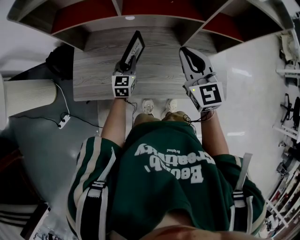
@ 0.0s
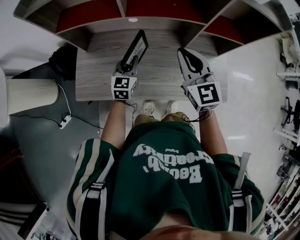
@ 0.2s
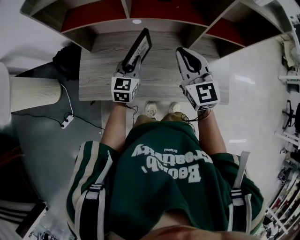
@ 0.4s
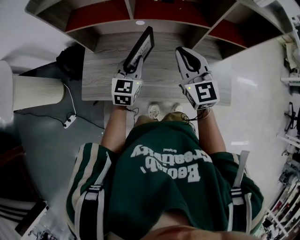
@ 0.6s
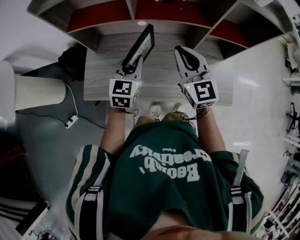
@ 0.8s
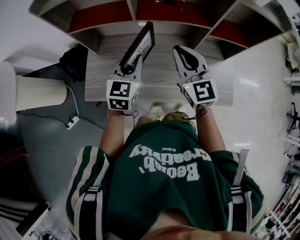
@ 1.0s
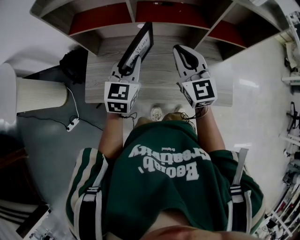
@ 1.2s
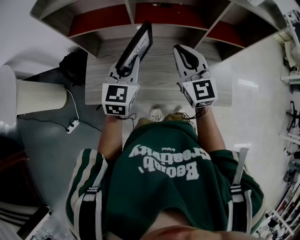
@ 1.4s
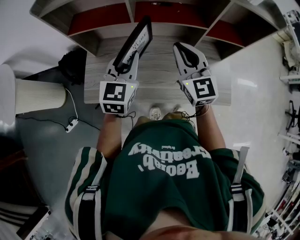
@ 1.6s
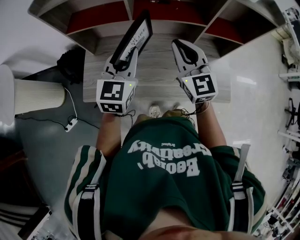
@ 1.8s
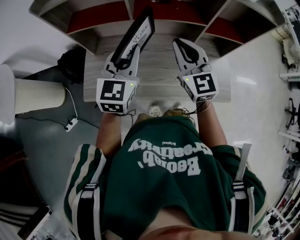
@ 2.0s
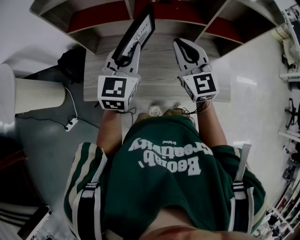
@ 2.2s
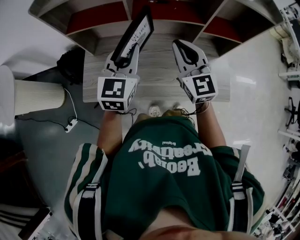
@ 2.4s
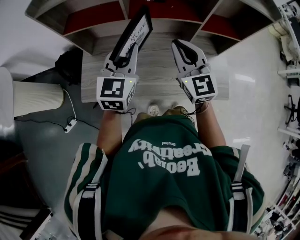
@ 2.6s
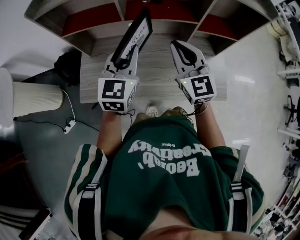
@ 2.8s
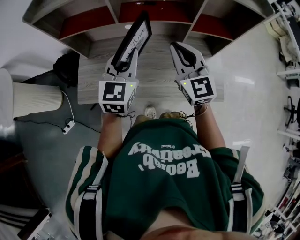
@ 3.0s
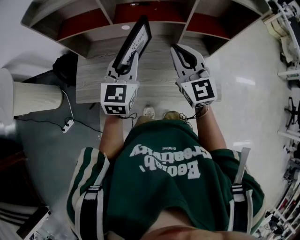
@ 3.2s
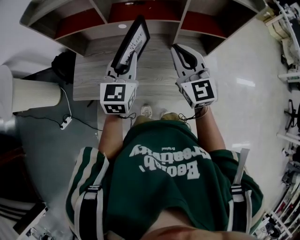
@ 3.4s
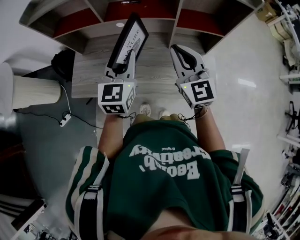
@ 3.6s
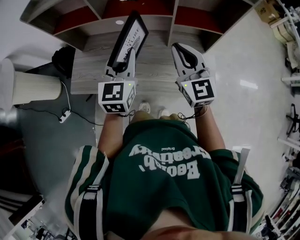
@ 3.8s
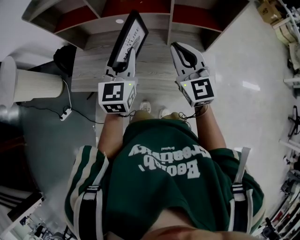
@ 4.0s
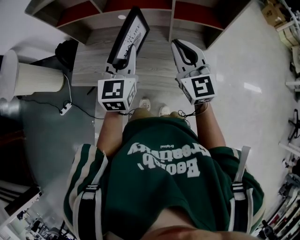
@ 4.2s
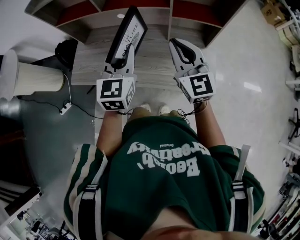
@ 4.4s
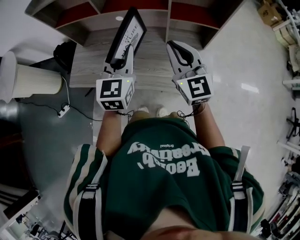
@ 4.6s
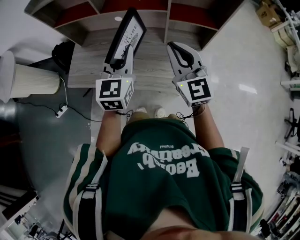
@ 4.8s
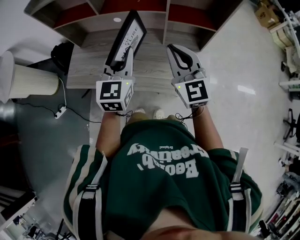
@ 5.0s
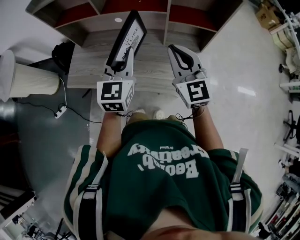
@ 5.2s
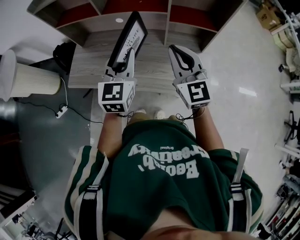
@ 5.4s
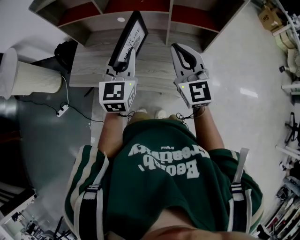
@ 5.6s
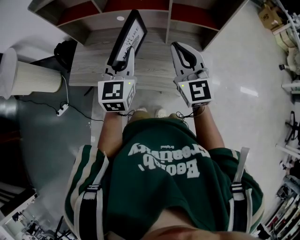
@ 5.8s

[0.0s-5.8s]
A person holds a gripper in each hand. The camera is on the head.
0.0s to 1.4s: The left gripper goes roughly 20 cm upward. Meanwhile the right gripper changes place by about 5 cm.
1.4s to 2.8s: The left gripper goes approximately 5 cm upward.
2.8s to 4.4s: Both grippers move to the right and backward, roughly 15 cm.
4.4s to 5.8s: The grippers stay close to where they were, moving slightly.

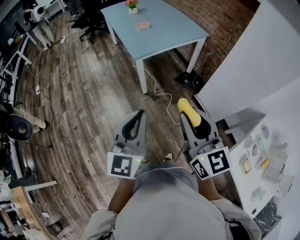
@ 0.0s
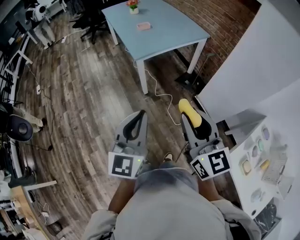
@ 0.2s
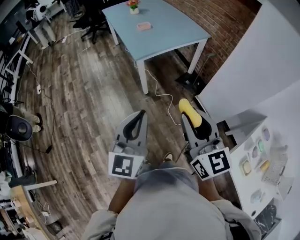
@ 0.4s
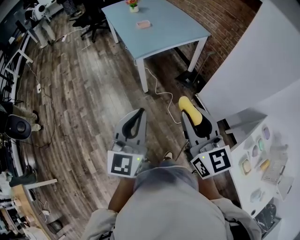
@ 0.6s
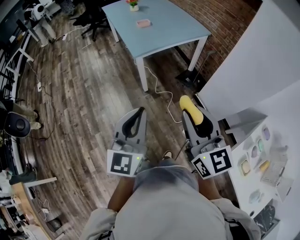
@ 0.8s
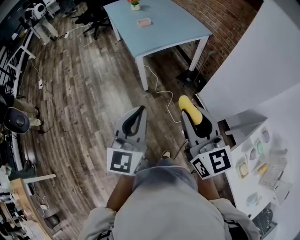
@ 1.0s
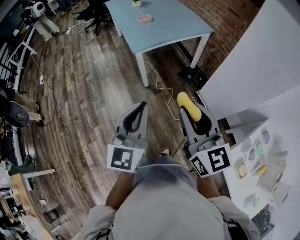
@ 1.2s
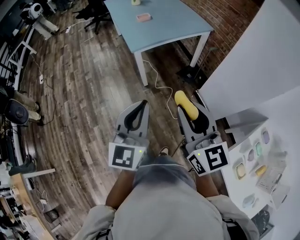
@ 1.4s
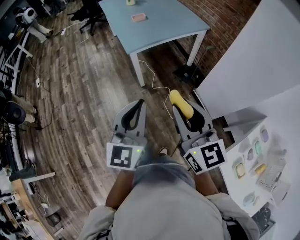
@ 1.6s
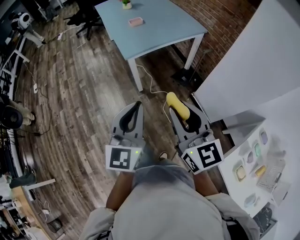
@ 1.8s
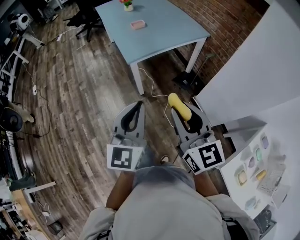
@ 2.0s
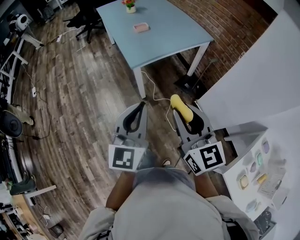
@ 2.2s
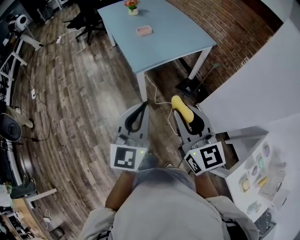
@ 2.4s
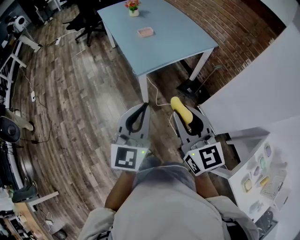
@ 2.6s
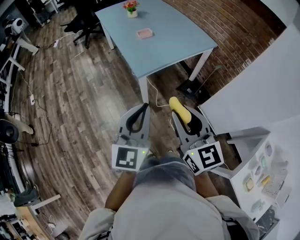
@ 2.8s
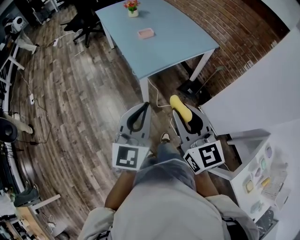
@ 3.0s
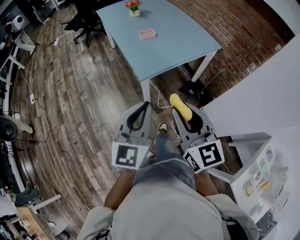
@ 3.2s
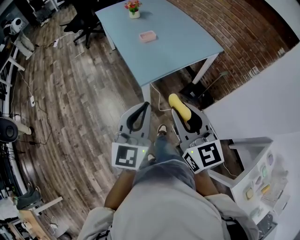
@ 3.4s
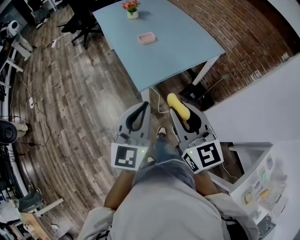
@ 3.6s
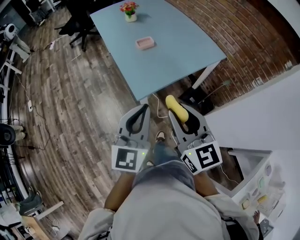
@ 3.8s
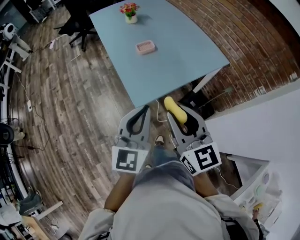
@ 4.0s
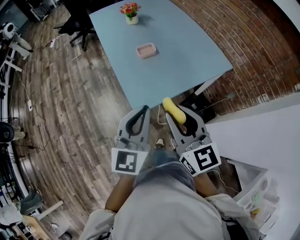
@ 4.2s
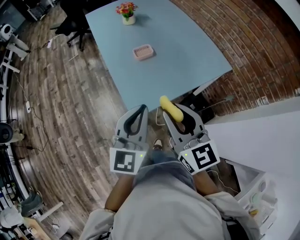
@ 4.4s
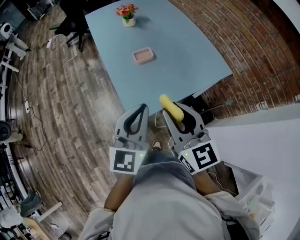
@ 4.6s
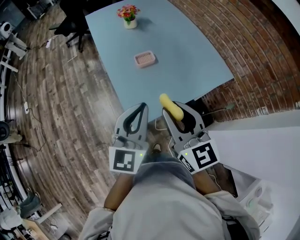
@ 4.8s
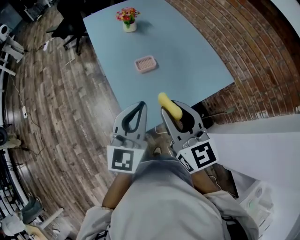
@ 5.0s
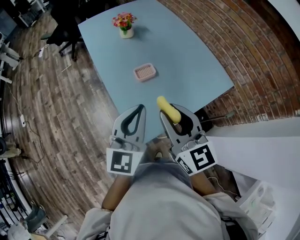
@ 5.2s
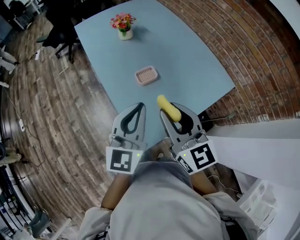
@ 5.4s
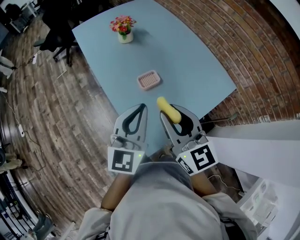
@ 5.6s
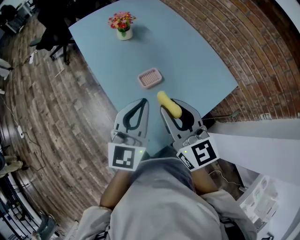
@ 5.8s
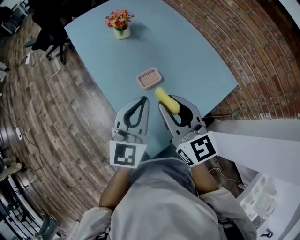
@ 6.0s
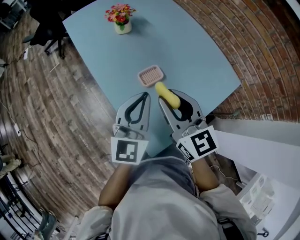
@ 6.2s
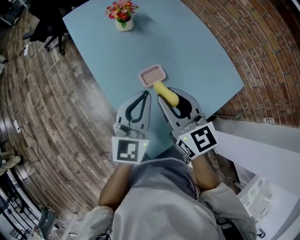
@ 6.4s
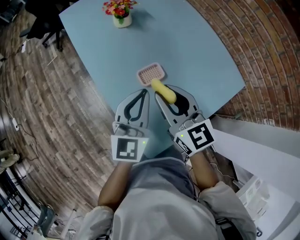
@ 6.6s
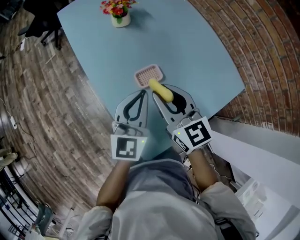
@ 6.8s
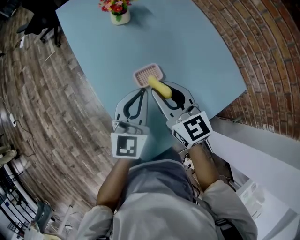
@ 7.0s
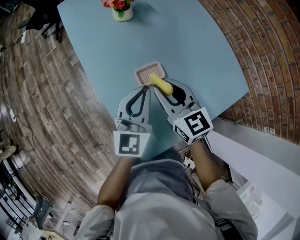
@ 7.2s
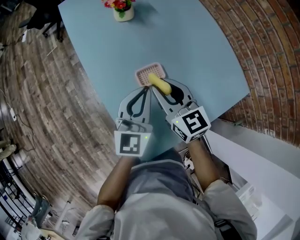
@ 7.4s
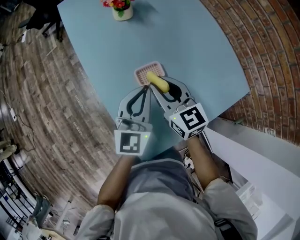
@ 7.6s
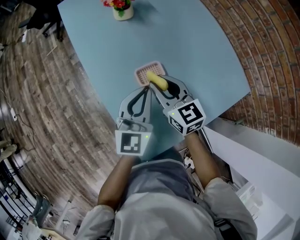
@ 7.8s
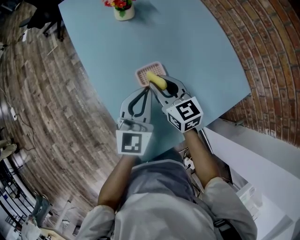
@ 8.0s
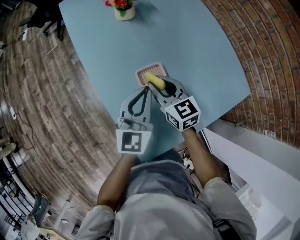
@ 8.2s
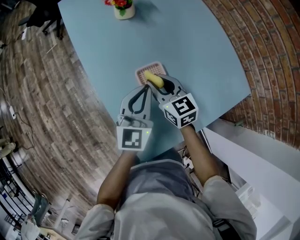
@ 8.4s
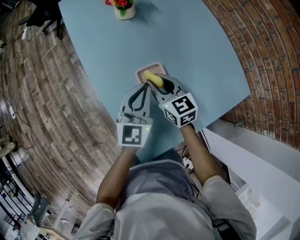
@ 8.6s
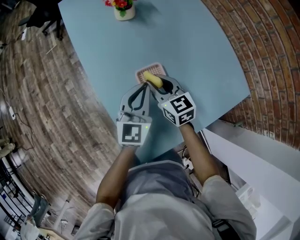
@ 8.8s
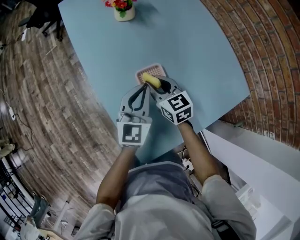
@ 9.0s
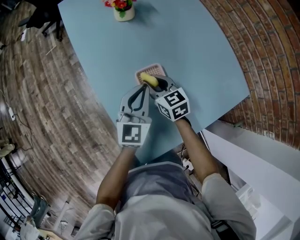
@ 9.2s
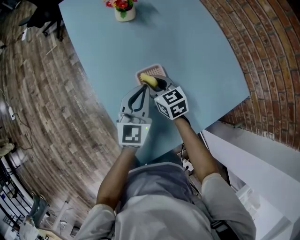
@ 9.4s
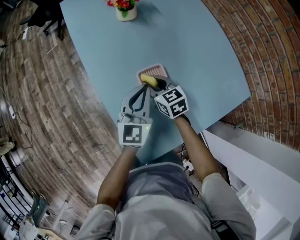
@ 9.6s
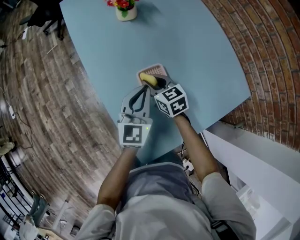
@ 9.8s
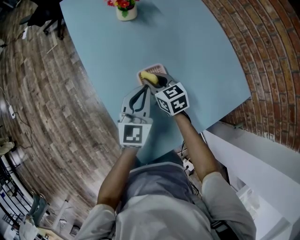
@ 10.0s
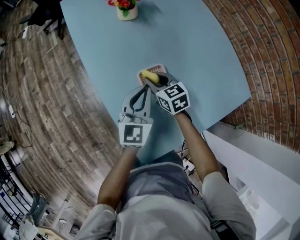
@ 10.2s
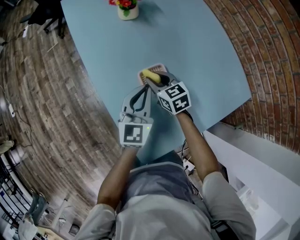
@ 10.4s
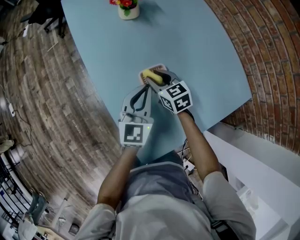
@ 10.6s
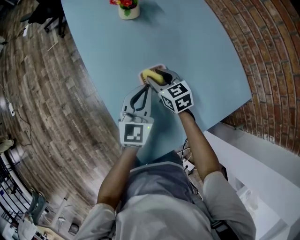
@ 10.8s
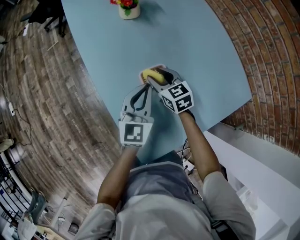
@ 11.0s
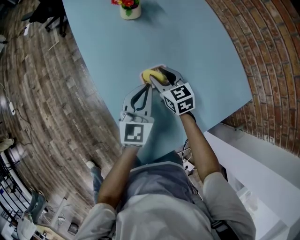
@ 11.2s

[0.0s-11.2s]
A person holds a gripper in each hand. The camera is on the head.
0.0s to 1.6s: The right gripper moves roughly 5 cm; the left gripper moves to the right, some 10 cm.
1.6s to 3.2s: Both grippers travel together forward and to the left, roughly 25 cm.
3.2s to 4.8s: The grippers both shift forward by some 35 cm.
4.8s to 6.4s: Both grippers travel together forward, some 25 cm.
6.4s to 8.0s: The right gripper heads downward and forward, covering roughly 15 cm. Meanwhile the left gripper goes some 10 cm downward.
8.0s to 9.6s: The right gripper is displaced downward by approximately 10 cm.
9.6s to 11.2s: The grippers stay close to where they were, moving slightly.

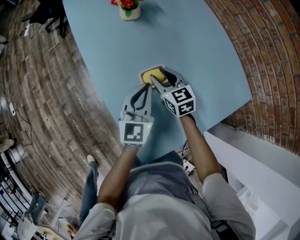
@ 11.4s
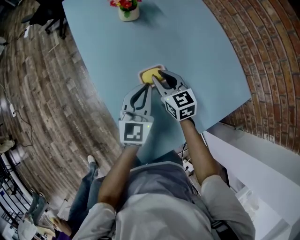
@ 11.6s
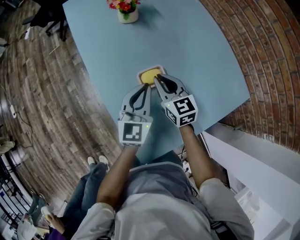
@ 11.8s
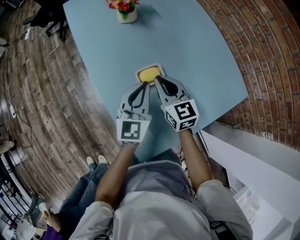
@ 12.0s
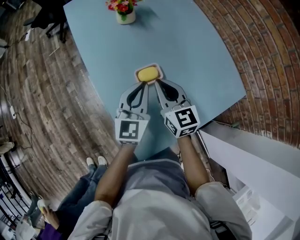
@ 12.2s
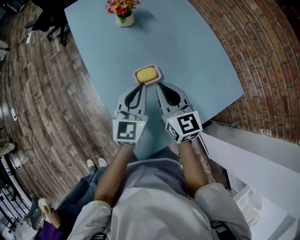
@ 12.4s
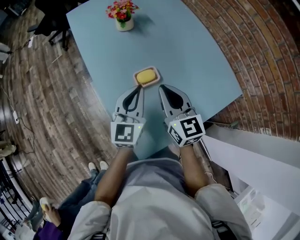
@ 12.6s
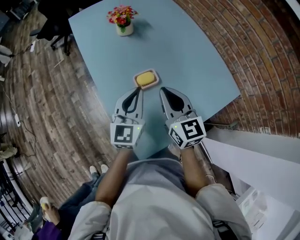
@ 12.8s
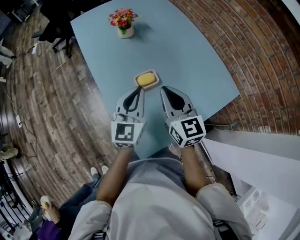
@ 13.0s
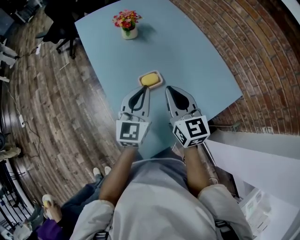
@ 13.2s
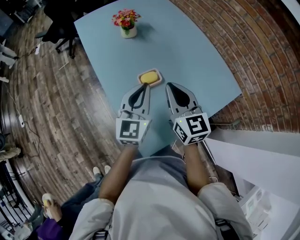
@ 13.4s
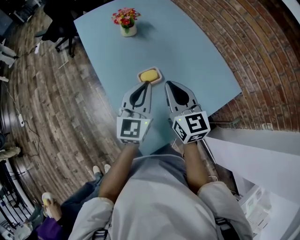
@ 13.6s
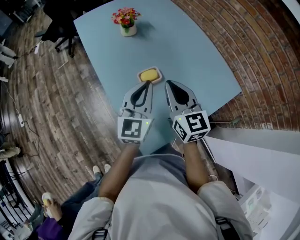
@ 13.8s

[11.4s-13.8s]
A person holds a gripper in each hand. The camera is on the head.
11.4s to 12.6s: The left gripper shifts approximately 5 cm upward. Meanwhile the right gripper shifts roughly 20 cm upward and backward, swivels approximately 20 degrees, and closes its fingers.
12.6s to 13.8s: The left gripper is displaced upward by some 5 cm, while the right gripper ends up about 5 cm from where it was.

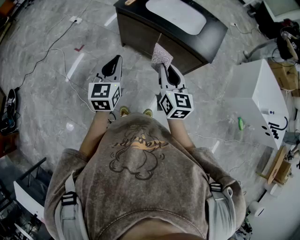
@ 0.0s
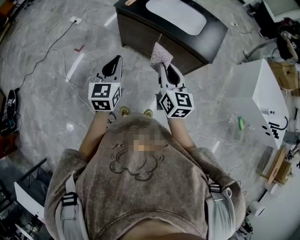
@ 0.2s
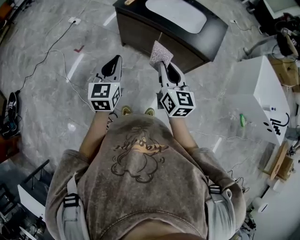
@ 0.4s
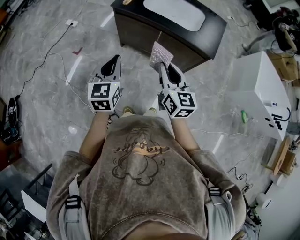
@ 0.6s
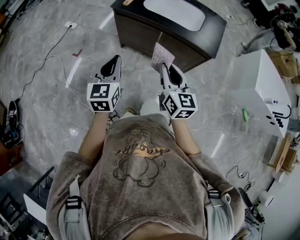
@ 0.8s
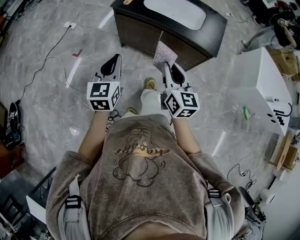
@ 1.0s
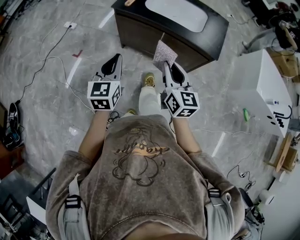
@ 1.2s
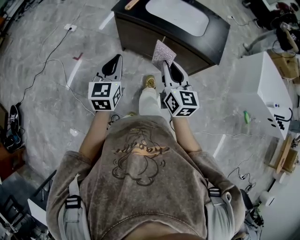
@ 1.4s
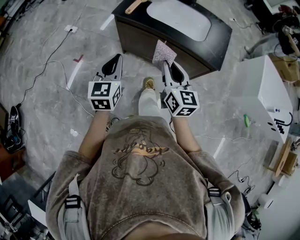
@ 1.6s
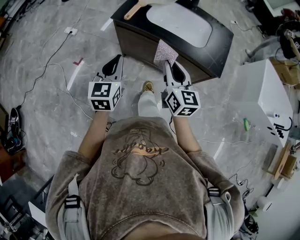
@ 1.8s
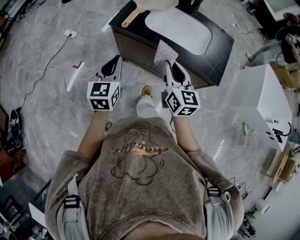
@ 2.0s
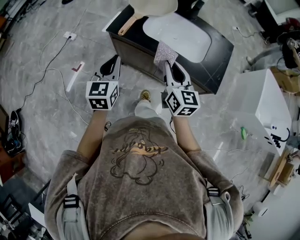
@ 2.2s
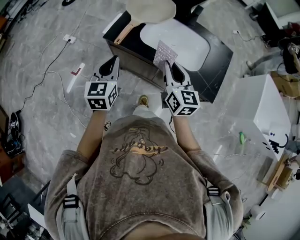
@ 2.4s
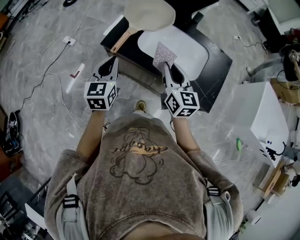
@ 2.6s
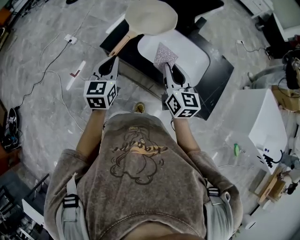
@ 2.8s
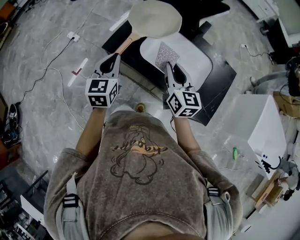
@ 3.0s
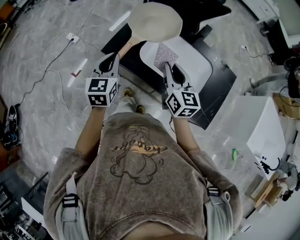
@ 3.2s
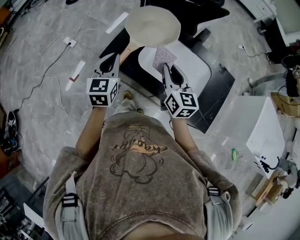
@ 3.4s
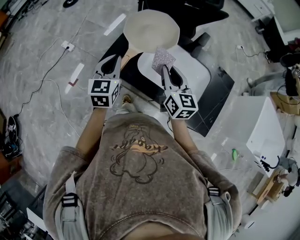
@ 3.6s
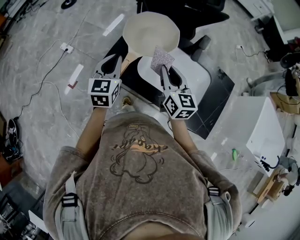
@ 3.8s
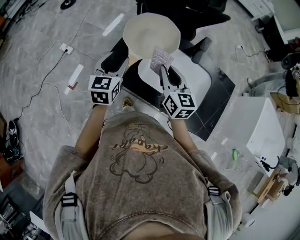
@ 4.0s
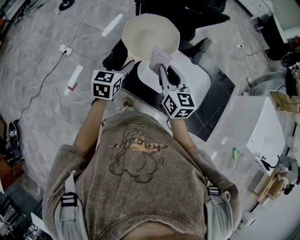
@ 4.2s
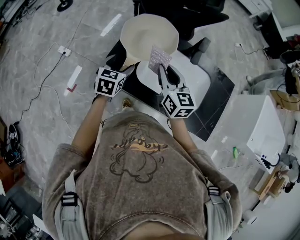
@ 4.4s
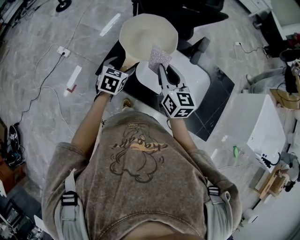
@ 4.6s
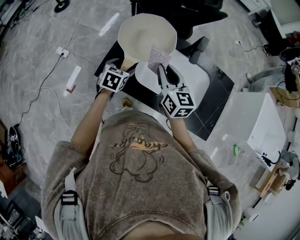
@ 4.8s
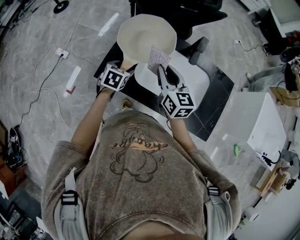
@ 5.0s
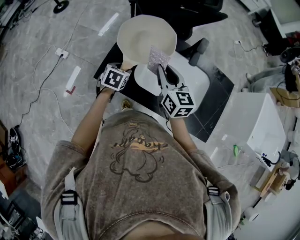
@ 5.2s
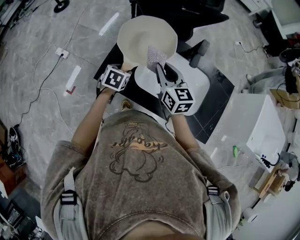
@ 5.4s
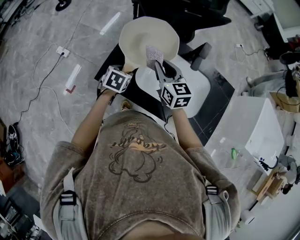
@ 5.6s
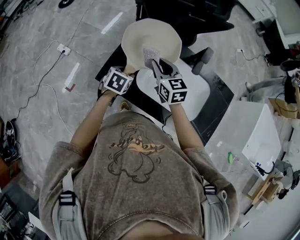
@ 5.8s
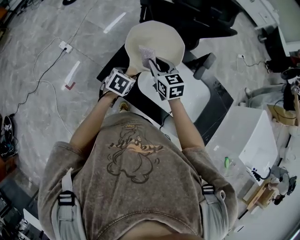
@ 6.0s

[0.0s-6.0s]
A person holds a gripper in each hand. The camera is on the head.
0.0s to 1.6s: Both grippers move forward, approximately 10 cm.
1.6s to 3.0s: Both grippers move forward, about 30 cm.
3.0s to 4.4s: The right gripper shifts approximately 15 cm forward; the left gripper is displaced forward and downward by some 20 cm, swivels some 20 degrees, and opens.
4.4s to 6.0s: The right gripper travels forward, downward and to the left by approximately 15 cm, and turns by approximately 20 degrees, while the left gripper is displaced downward by roughly 5 cm, and closes its fingers.
